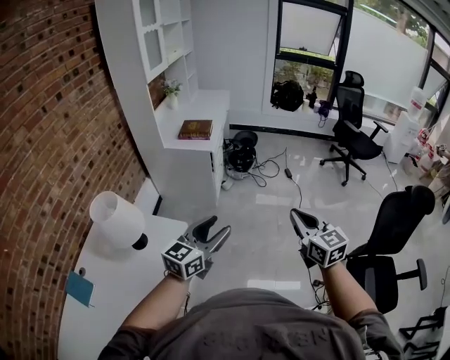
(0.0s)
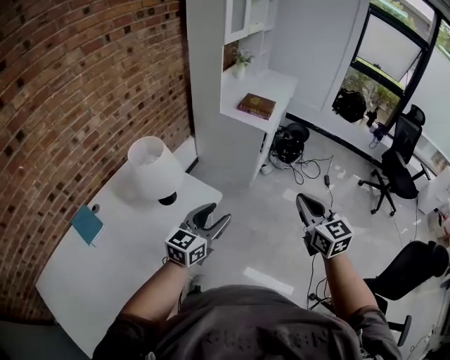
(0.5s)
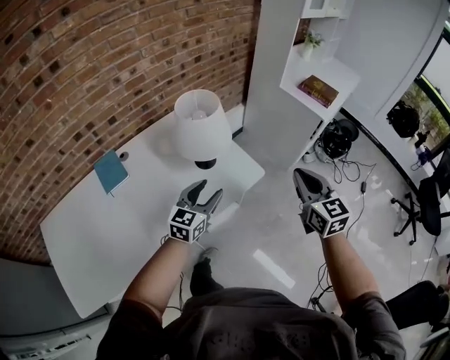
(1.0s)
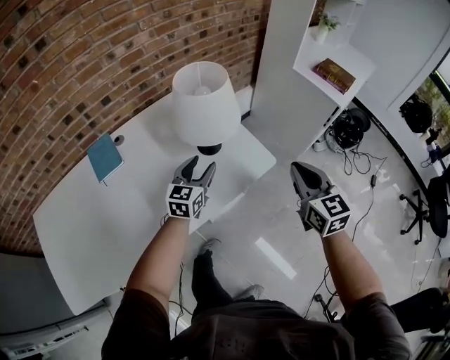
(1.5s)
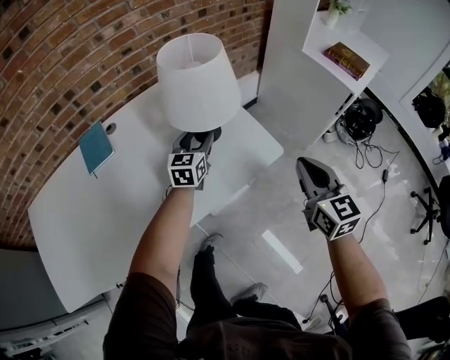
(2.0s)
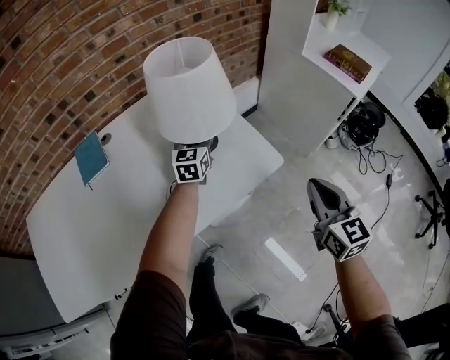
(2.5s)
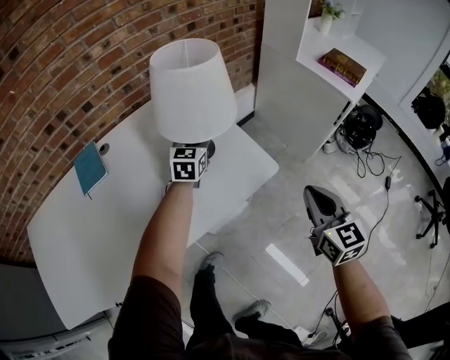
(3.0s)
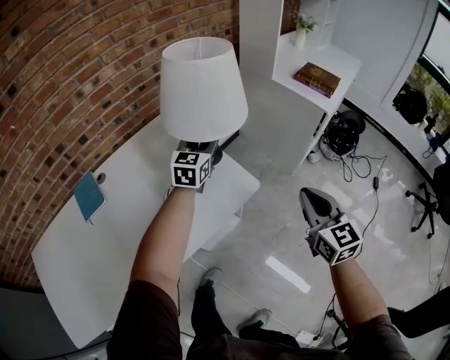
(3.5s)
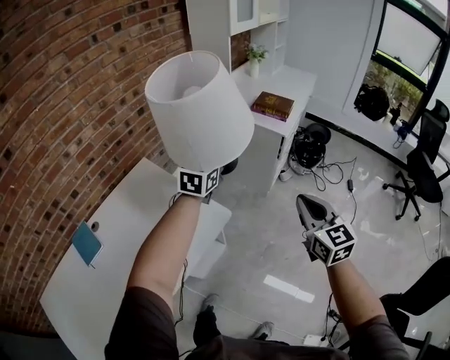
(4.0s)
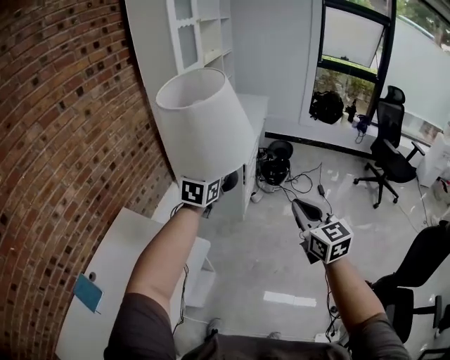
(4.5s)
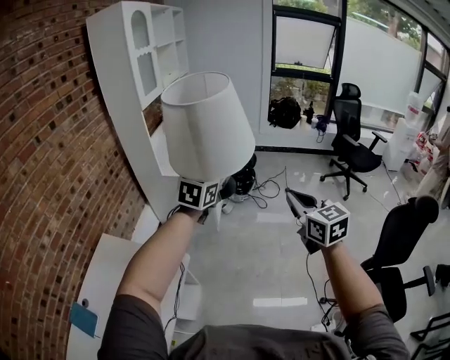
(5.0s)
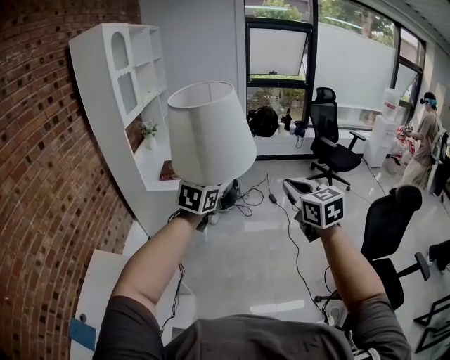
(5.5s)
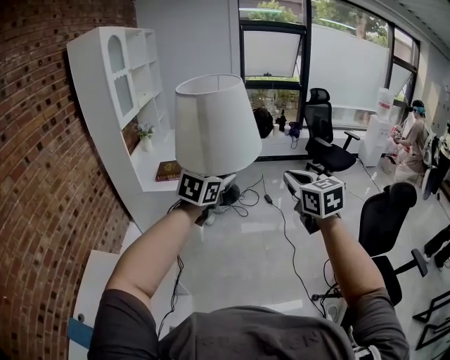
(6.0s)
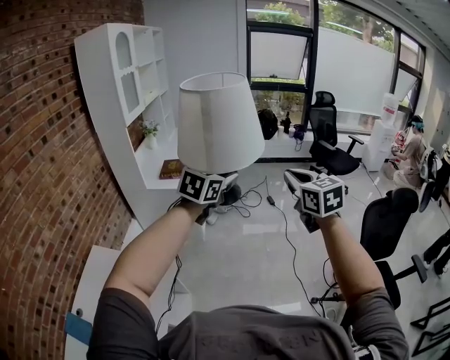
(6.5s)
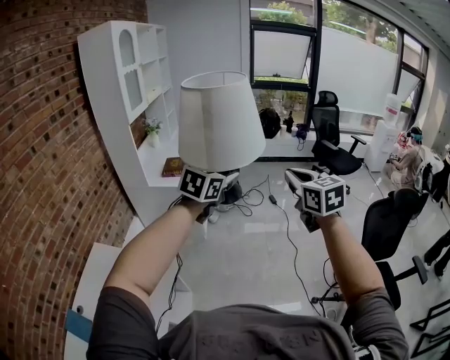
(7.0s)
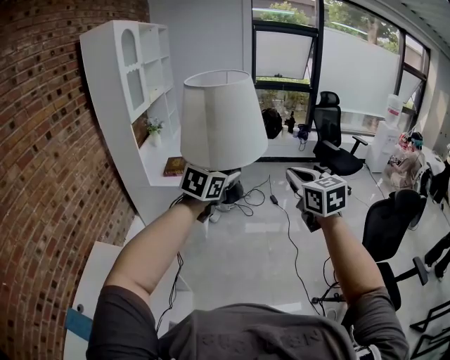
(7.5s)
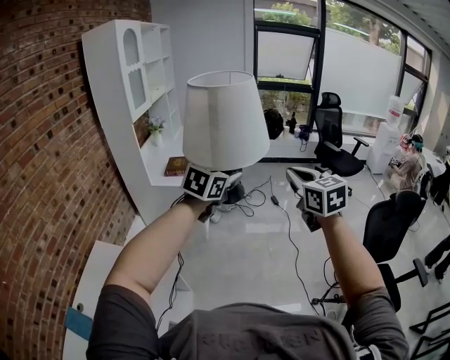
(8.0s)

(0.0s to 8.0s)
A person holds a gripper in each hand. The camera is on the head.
0.0s - 2.0s: The left gripper changes place by roughly 50 cm, and rotates approximately 70 degrees, while the right gripper changes place by roughly 40 cm, and swivels roughly 40 degrees.
2.0s - 4.0s: The right gripper changes place by approximately 20 cm, and turns by roughly 20 degrees, while the left gripper shifts by about 40 cm, and swivels some 30 degrees.
4.0s - 6.0s: The right gripper ends up some 40 cm from where it was, and rotates roughly 30 degrees; the left gripper moves about 40 cm, and turns by approximately 40 degrees.
6.0s - 8.0s: The grippers stay close to where they were, moving slightly.

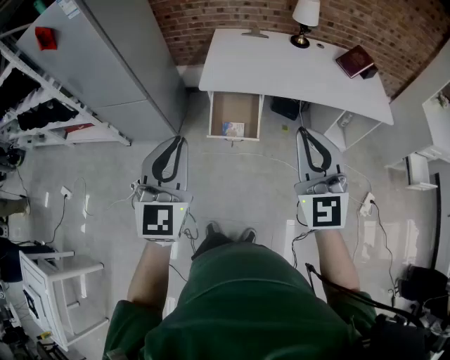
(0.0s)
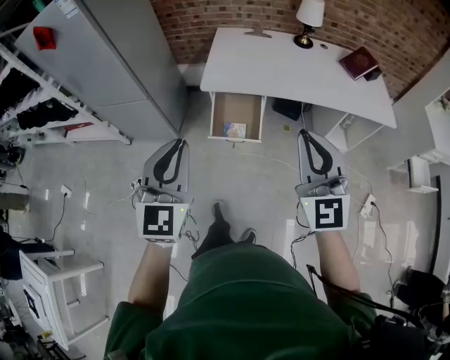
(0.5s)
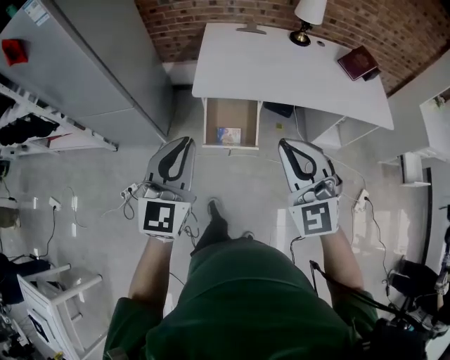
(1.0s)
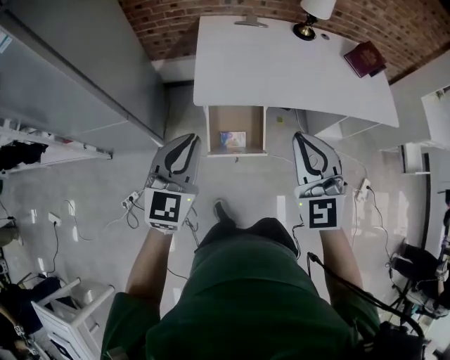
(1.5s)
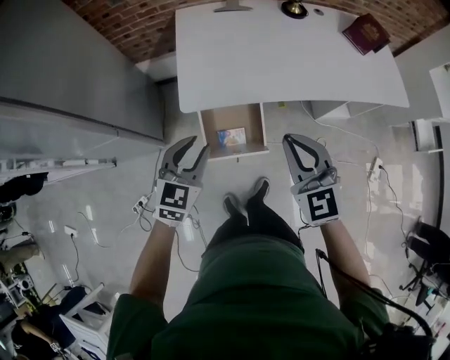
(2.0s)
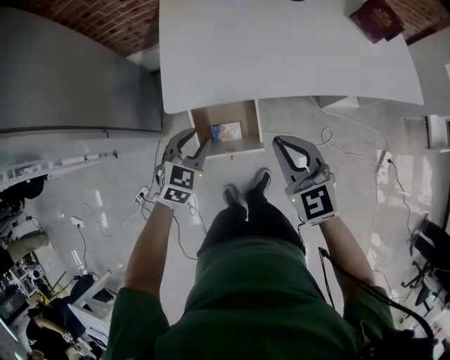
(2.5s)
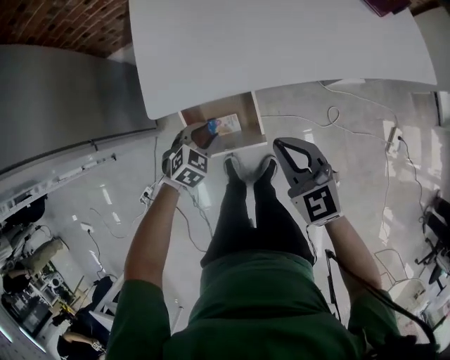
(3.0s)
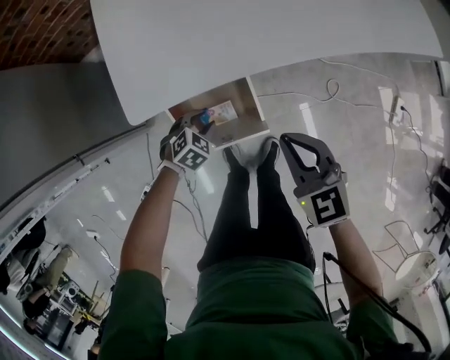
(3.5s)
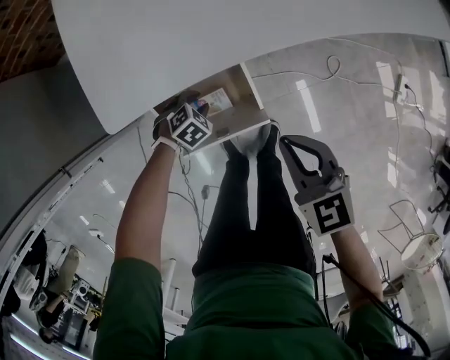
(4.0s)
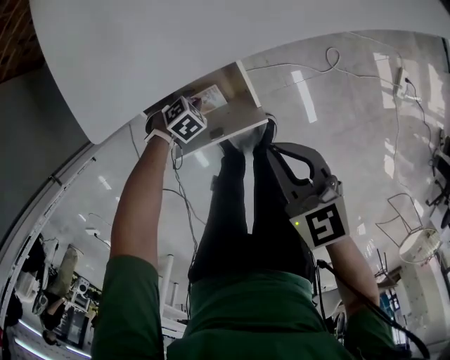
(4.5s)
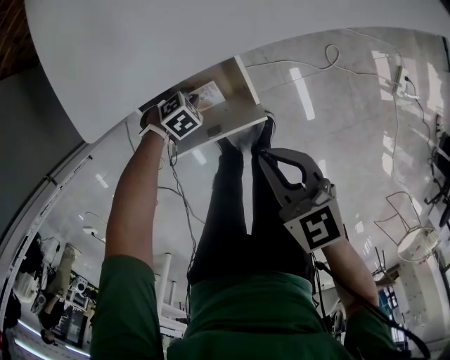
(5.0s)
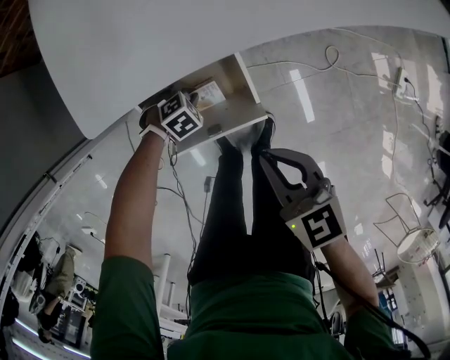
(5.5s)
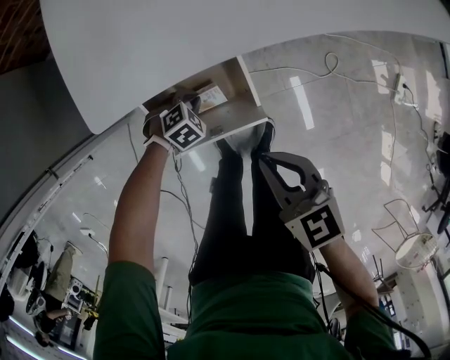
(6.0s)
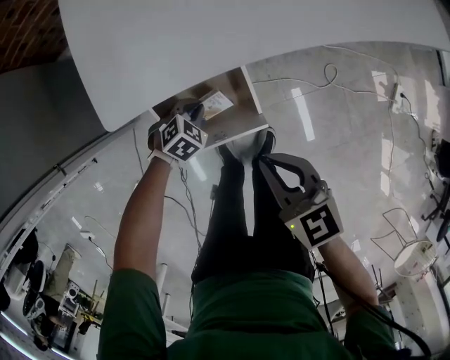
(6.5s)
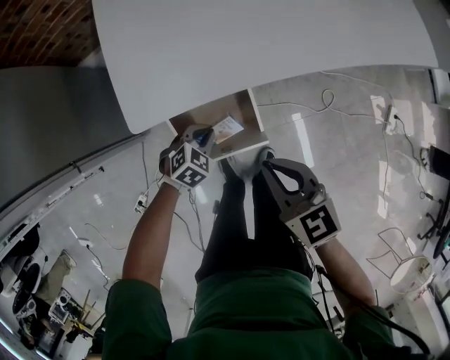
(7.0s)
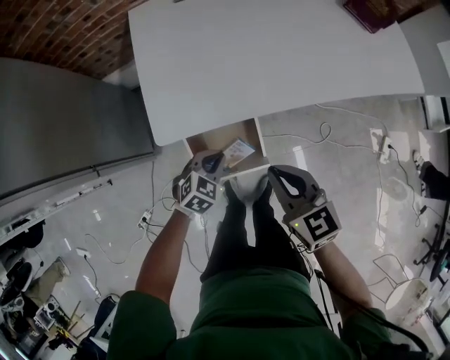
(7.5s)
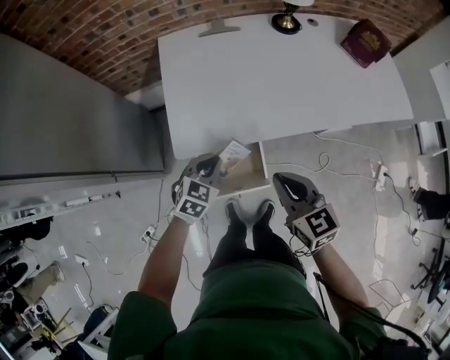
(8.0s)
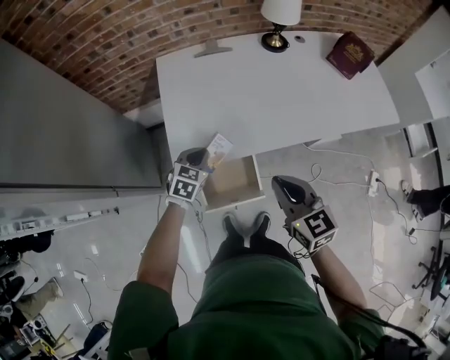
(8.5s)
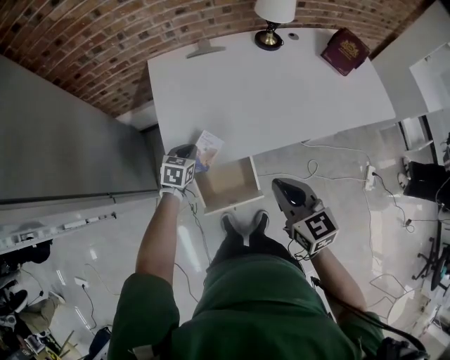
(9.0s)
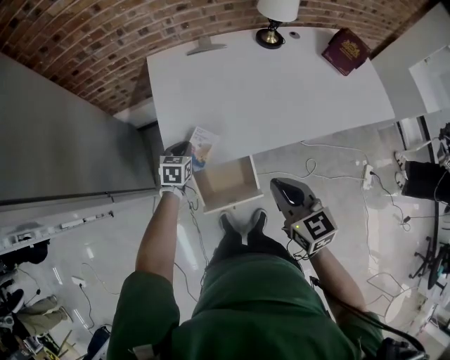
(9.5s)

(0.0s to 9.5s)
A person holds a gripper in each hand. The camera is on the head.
0.0s - 2.0s: Both grippers move forward and downward, roughly 35 cm. The right gripper changes its angle by roughly 20 degrees. The left gripper changes its angle by approximately 30 degrees, and opens.
2.0s - 4.0s: The left gripper goes approximately 50 cm downward, and angles its fingers downward, by some 50 degrees, while the right gripper heads downward, covering approximately 25 cm, and swivels roughly 30 degrees.
4.0s - 5.5s: The left gripper closes its fingers.
5.5s - 7.5s: The left gripper is displaced upward by some 25 cm, and rotates approximately 40 degrees. Meanwhile the right gripper is displaced upward by some 15 cm.
7.5s - 9.5s: The right gripper heads upward, covering approximately 10 cm, while the left gripper is displaced forward and to the left by roughly 20 cm, and turns by roughly 30 degrees.

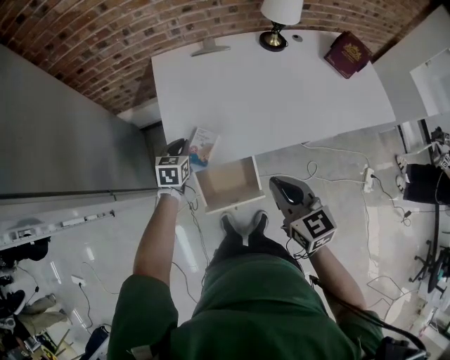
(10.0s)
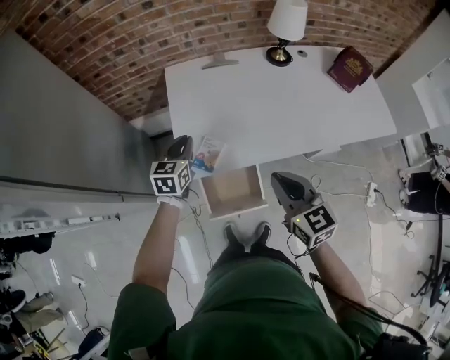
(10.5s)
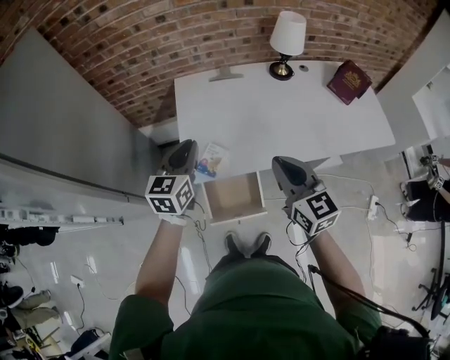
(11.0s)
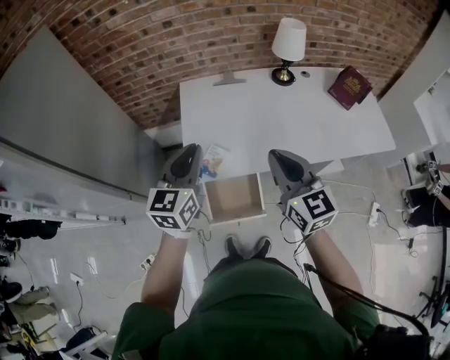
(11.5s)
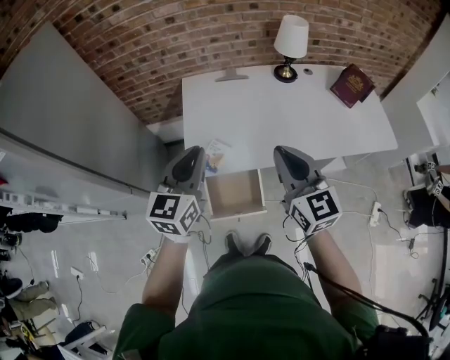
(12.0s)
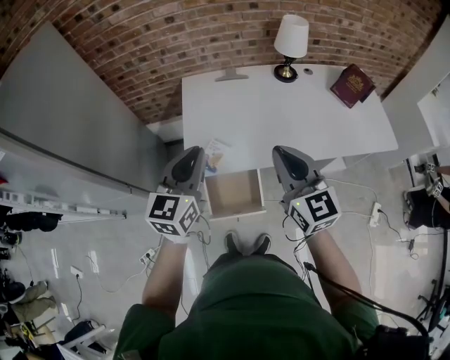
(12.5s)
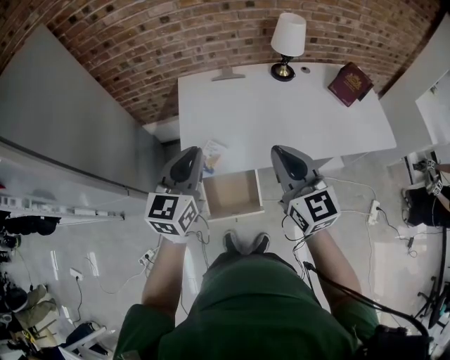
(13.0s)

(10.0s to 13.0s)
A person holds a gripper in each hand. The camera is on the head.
10.0s - 11.5s: The left gripper heads upward, covering about 30 cm, and points its fingers roughly 30 degrees further upward. The right gripper shifts roughly 15 cm upward.
11.5s - 13.0s: The grippers make only small movements.

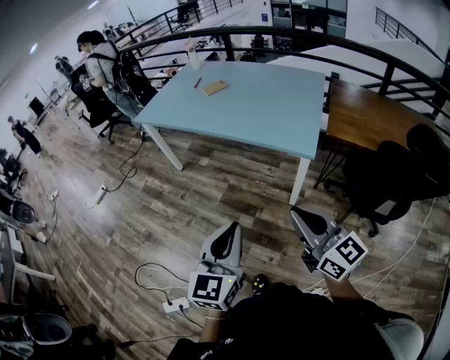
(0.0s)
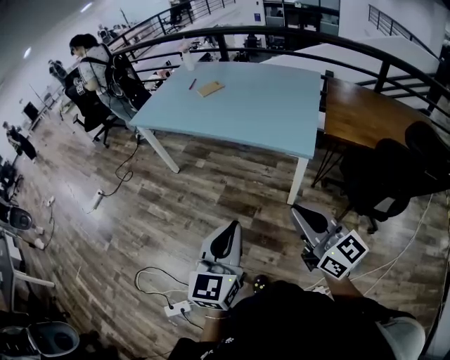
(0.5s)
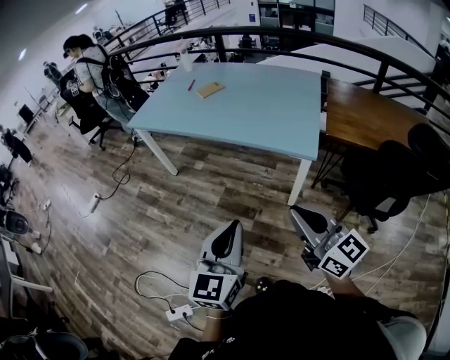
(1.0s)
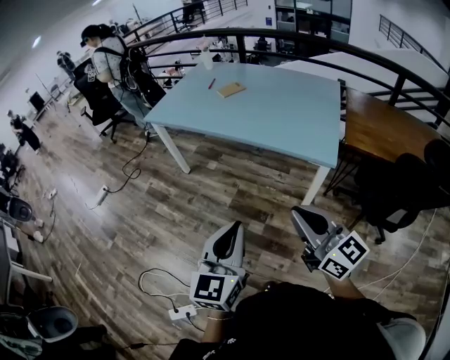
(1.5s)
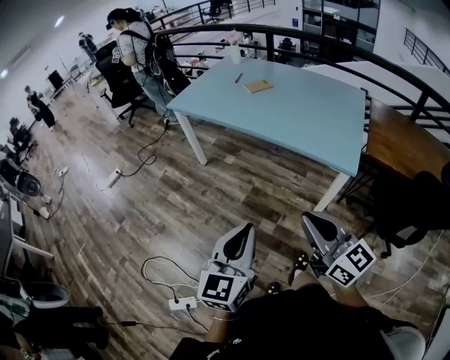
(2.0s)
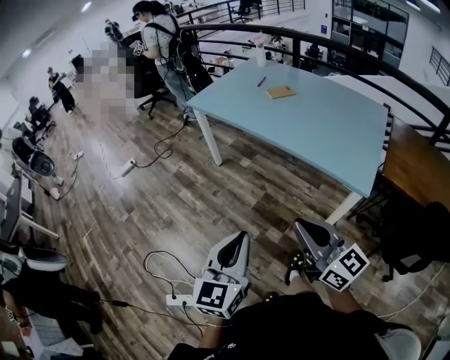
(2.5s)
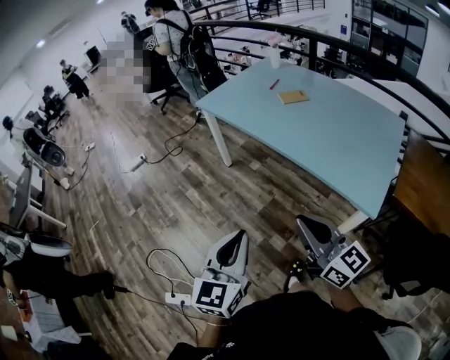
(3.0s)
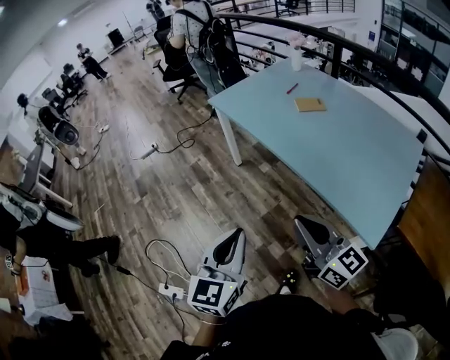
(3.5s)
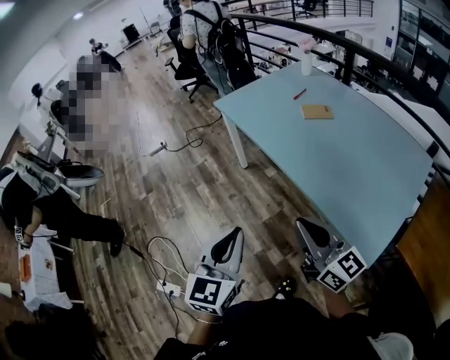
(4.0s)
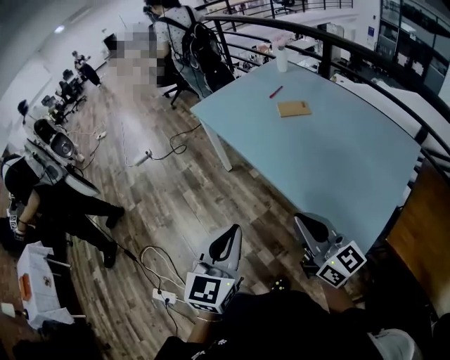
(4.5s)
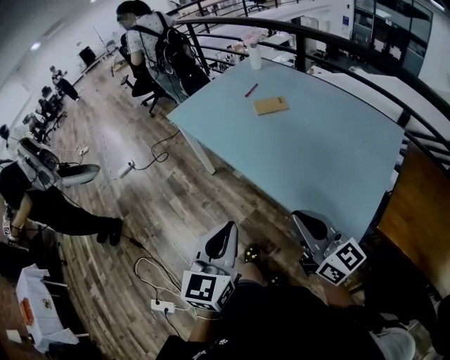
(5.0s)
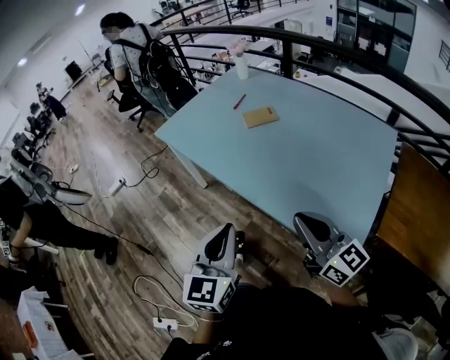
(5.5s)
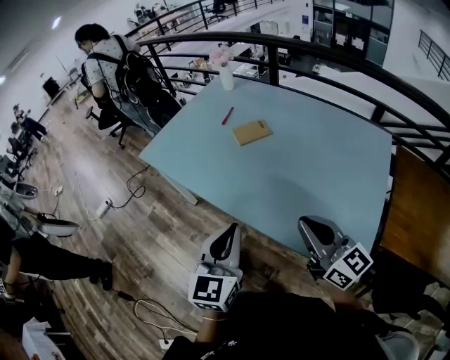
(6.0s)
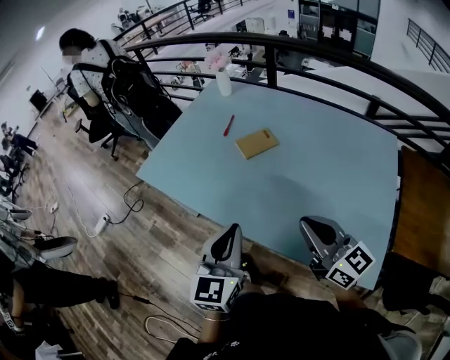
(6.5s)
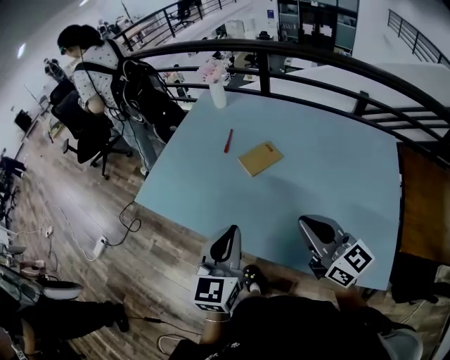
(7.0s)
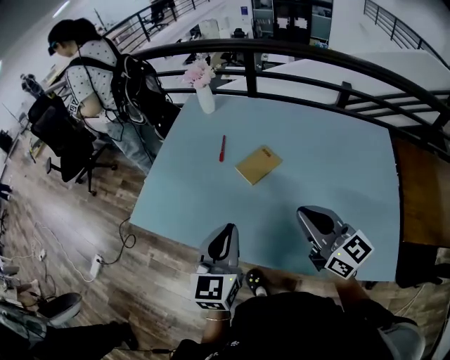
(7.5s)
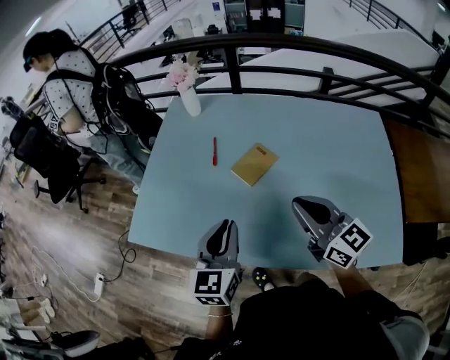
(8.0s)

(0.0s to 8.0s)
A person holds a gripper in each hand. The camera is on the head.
0.0s - 2.0s: Both grippers travel together to the left and forward, approximately 15 cm.
2.0s - 4.0s: Both grippers move forward and to the right, approximately 25 cm. The right gripper swivels about 30 degrees. The left gripper turns by approximately 30 degrees.
4.0s - 6.0s: Both grippers move forward and to the right, some 25 cm. The right gripper changes its angle by about 20 degrees.
6.0s - 8.0s: Both grippers travel together forward and to the left, about 35 cm. The right gripper changes its angle by approximately 20 degrees, while the left gripper rotates approximately 20 degrees.
